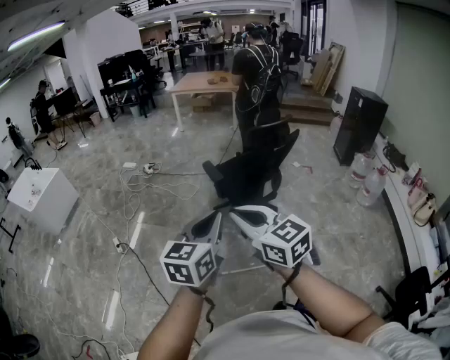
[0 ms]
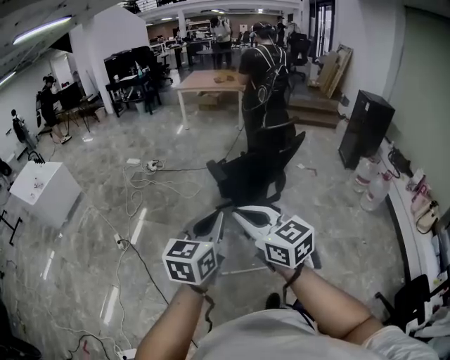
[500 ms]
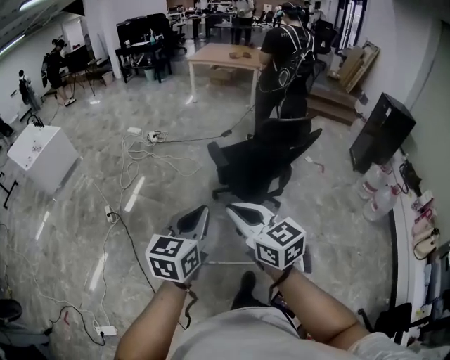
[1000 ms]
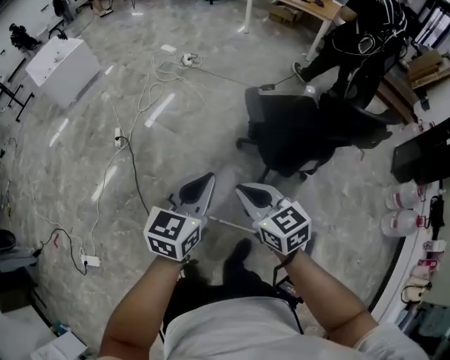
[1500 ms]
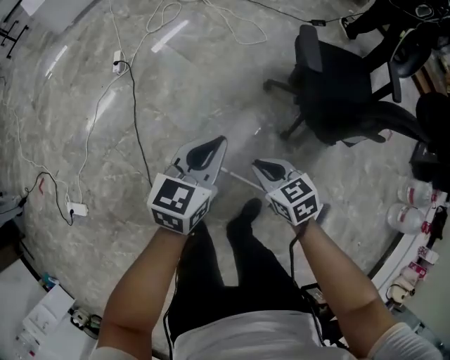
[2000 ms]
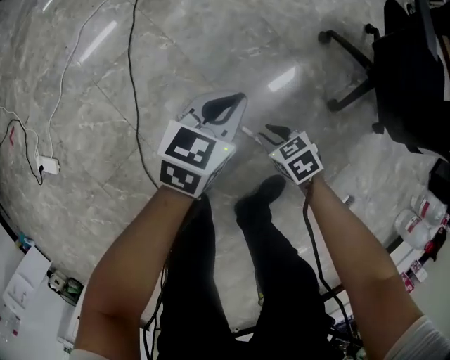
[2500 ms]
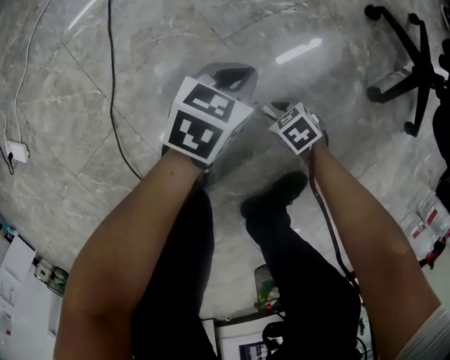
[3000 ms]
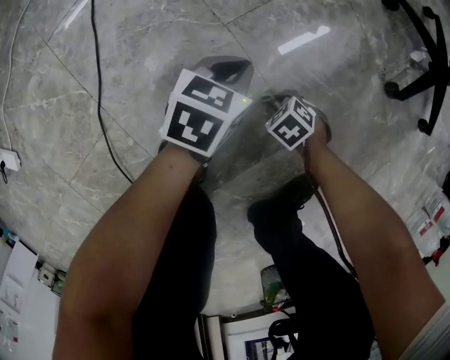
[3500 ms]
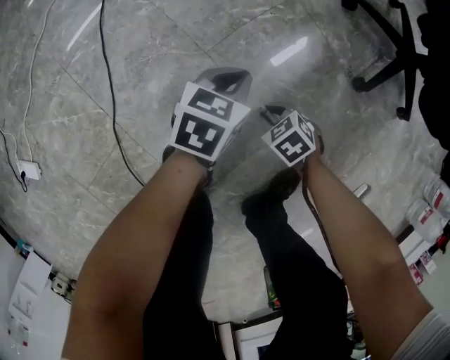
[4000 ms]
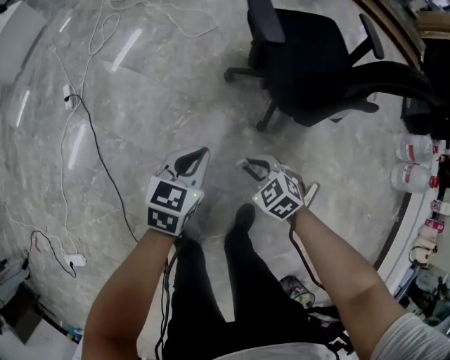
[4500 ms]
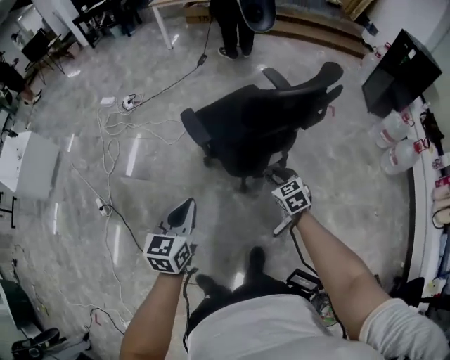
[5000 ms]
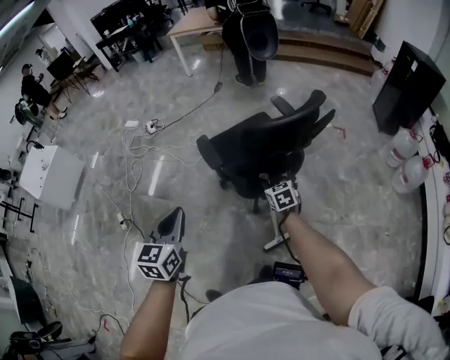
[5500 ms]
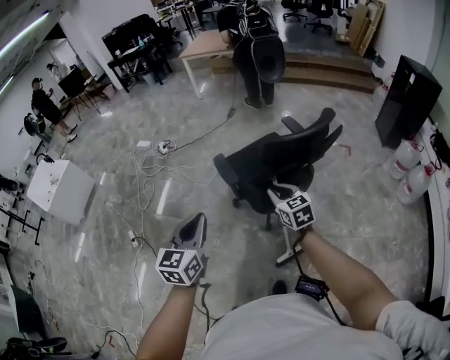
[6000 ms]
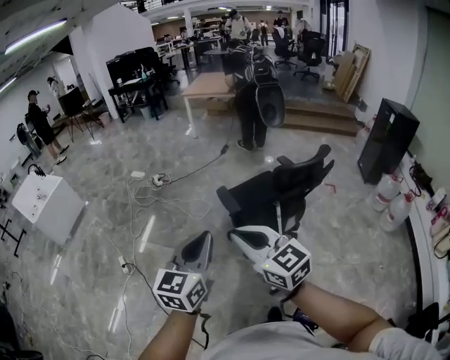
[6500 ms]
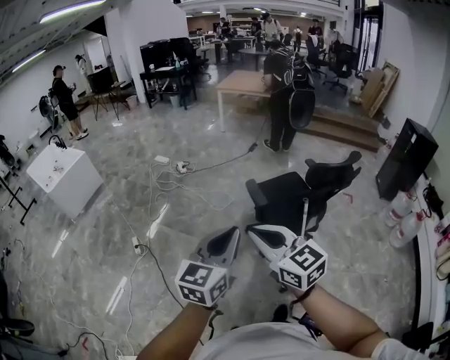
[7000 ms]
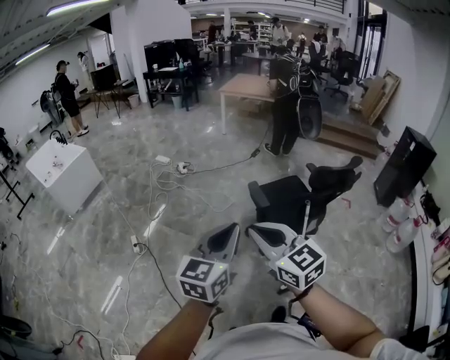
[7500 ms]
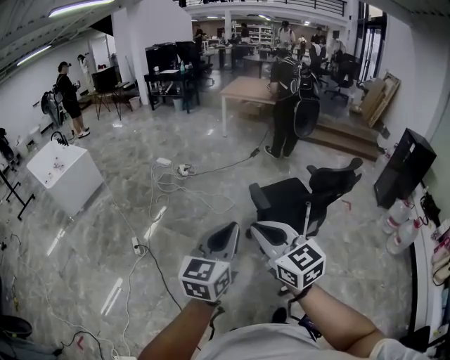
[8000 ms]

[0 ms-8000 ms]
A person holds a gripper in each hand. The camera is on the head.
0 ms to 2000 ms: Both grippers move downward, some 50 cm. The right gripper tilts its fingers approximately 40 degrees downward. Meanwhile the left gripper turns by about 30 degrees.
2000 ms to 4000 ms: Both grippers travel together downward, some 70 cm. The left gripper changes its angle by about 20 degrees, while the right gripper rotates about 40 degrees.
4000 ms to 6000 ms: The two grippers go about 1 m upward. The left gripper turns by roughly 40 degrees. Meanwhile the right gripper tilts its fingers roughly 50 degrees upward.
6000 ms to 8000 ms: The right gripper goes some 50 cm to the left, upward and backward, and rotates roughly 30 degrees. The left gripper travels to the left, upward and backward by some 30 cm.

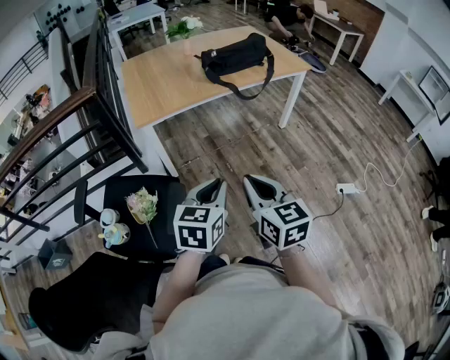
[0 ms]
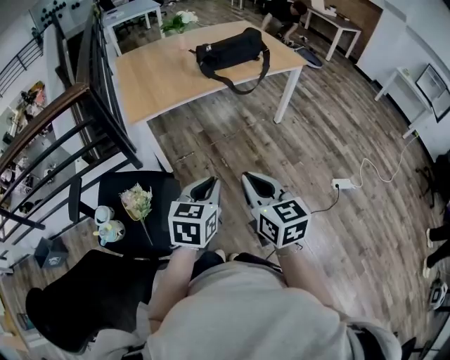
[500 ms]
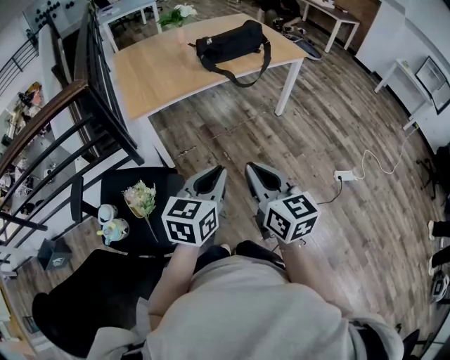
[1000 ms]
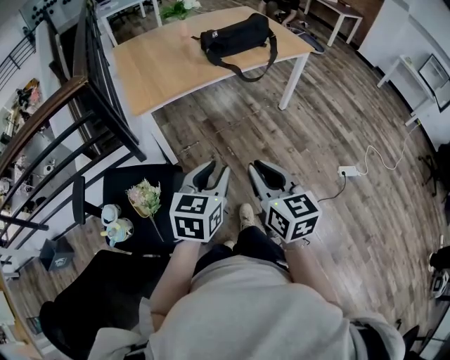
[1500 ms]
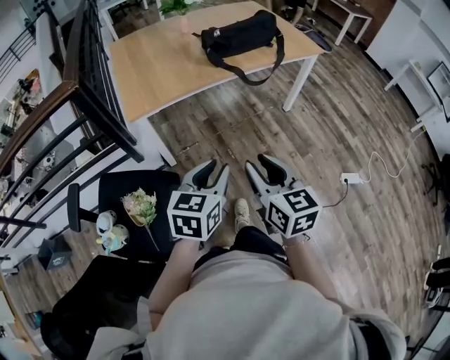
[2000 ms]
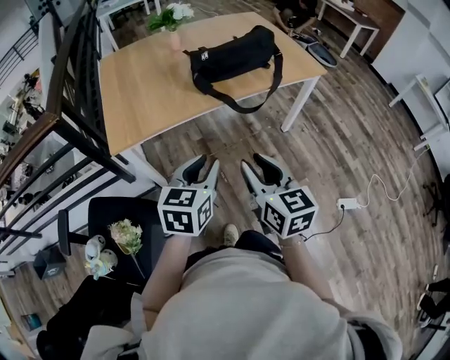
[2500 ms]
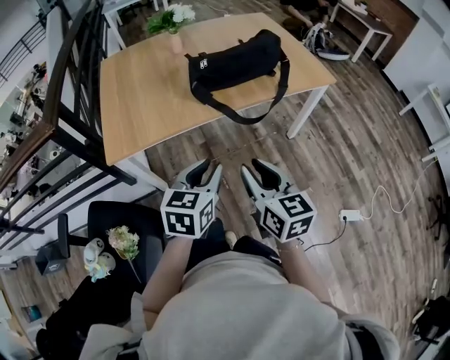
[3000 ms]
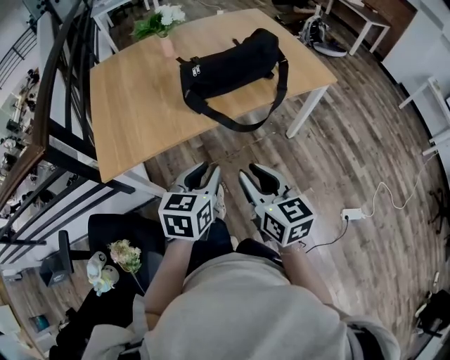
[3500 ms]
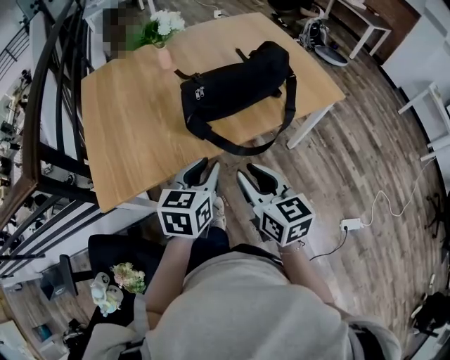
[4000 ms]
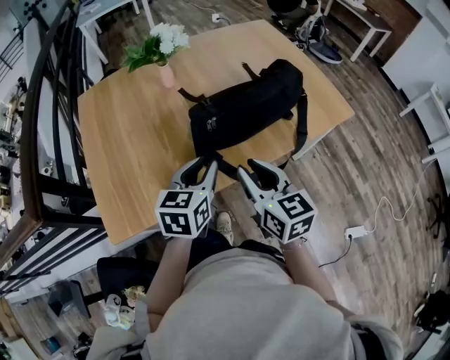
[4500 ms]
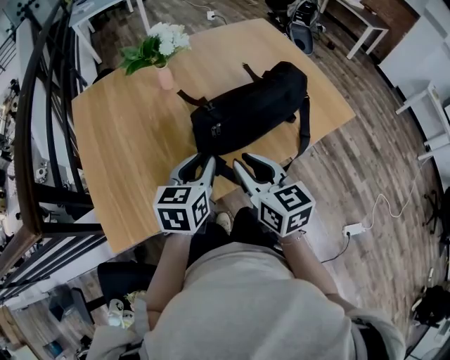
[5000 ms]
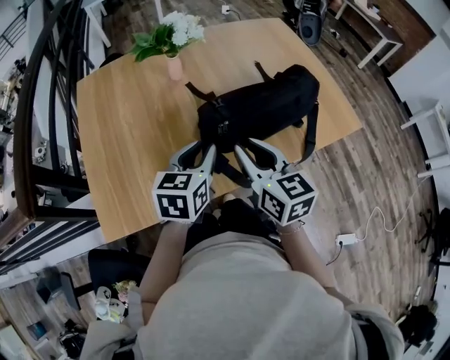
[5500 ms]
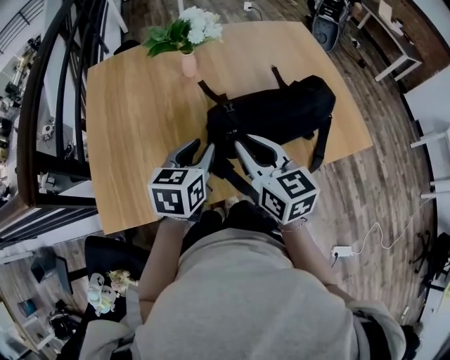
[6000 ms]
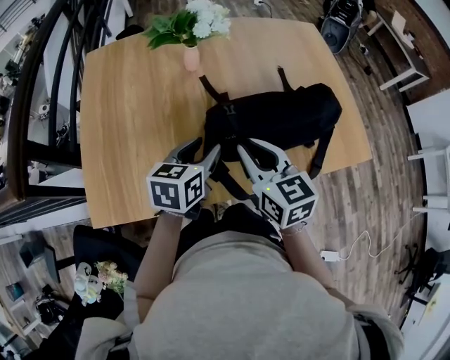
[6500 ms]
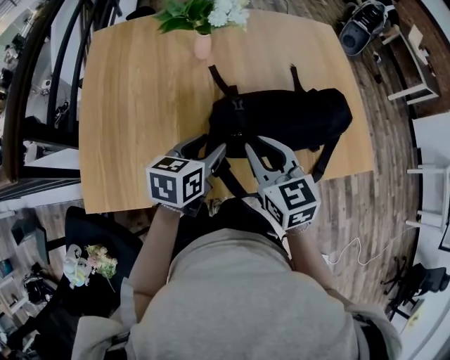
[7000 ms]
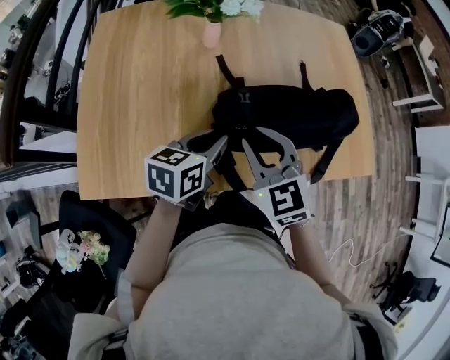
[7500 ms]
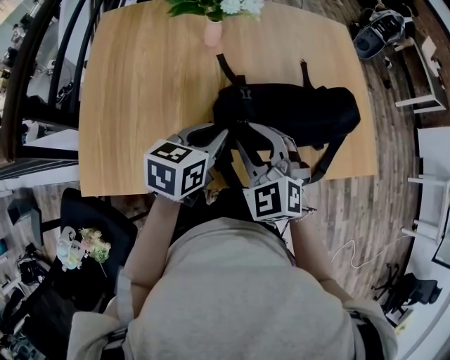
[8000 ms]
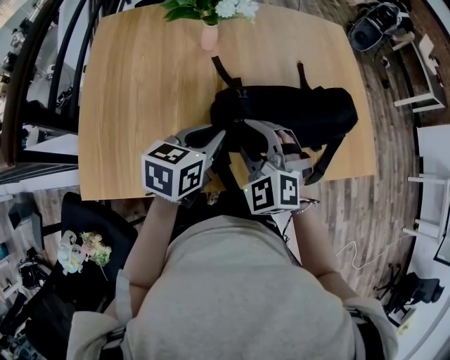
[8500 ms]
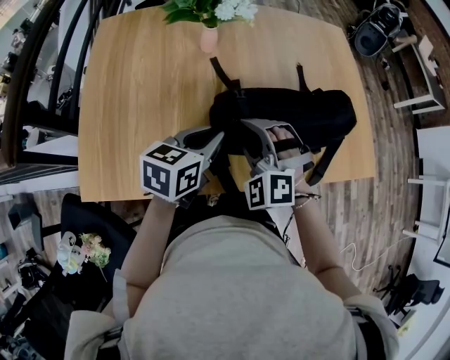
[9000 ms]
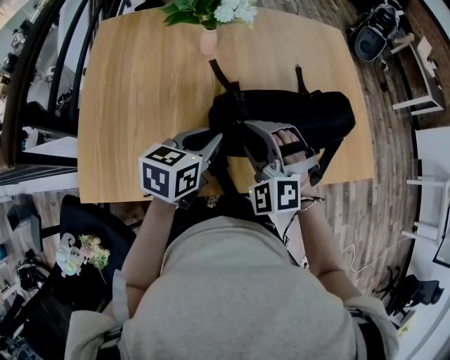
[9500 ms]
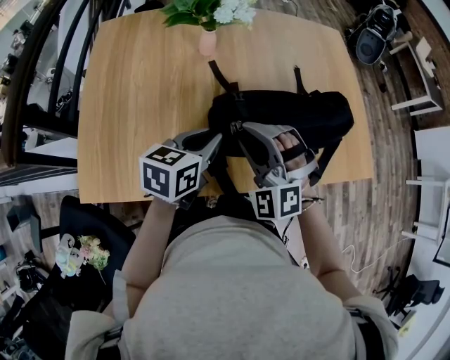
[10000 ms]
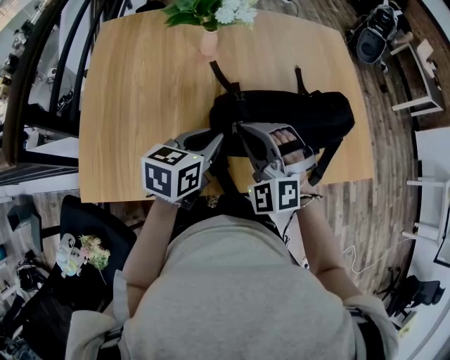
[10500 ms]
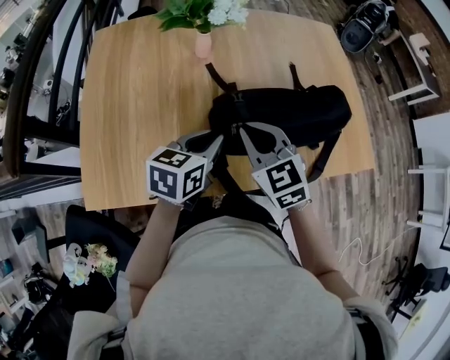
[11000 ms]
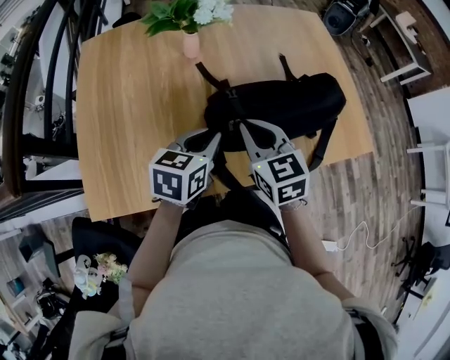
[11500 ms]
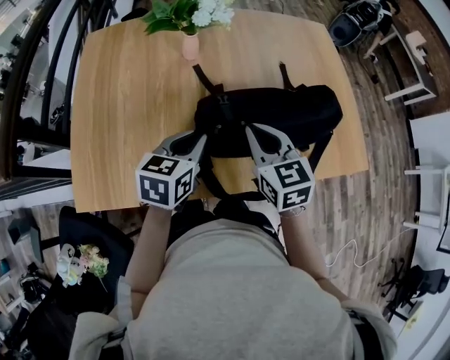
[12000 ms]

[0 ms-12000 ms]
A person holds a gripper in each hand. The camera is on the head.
0 ms to 2000 ms: Both grippers move forward, roughly 10 cm. The right gripper opens.
2000 ms to 4000 ms: Both grippers move forward, roughly 40 cm.
4000 ms to 6000 ms: The two grippers go about 20 cm forward.
6000 ms to 8000 ms: The right gripper shifts by approximately 5 cm, and twists about 50 degrees counterclockwise, seen from behind.
8000 ms to 10000 ms: The right gripper turns by approximately 30 degrees.
10000 ms to 12000 ms: The right gripper travels to the right by approximately 5 cm, rolls clockwise, seen from behind, by roughly 70 degrees, and closes.

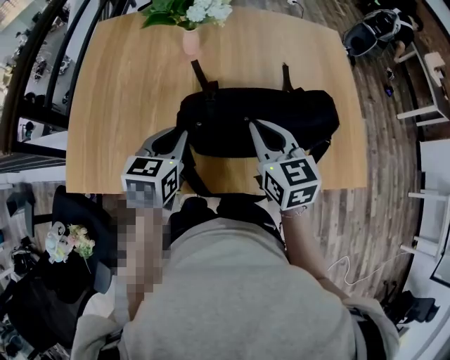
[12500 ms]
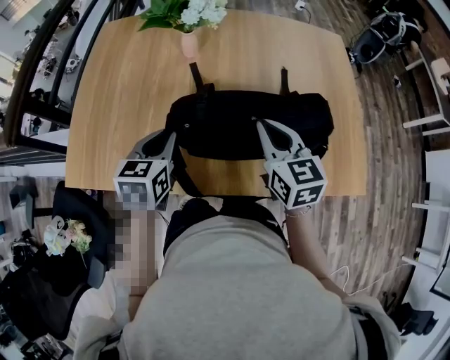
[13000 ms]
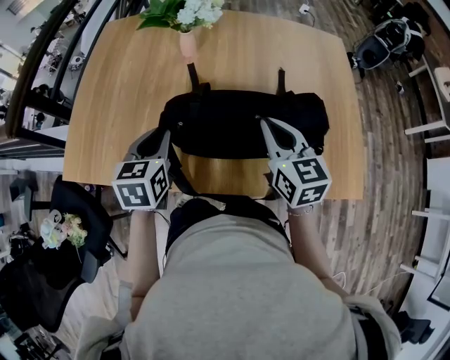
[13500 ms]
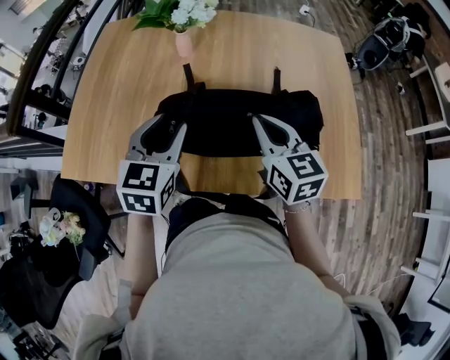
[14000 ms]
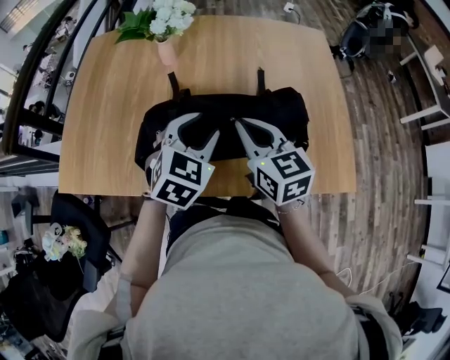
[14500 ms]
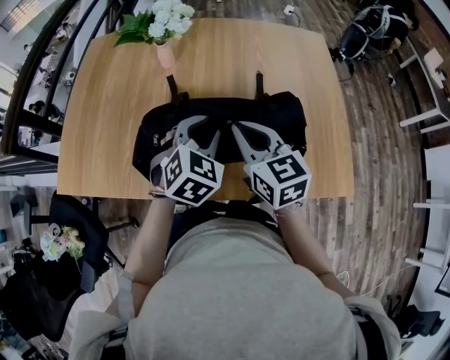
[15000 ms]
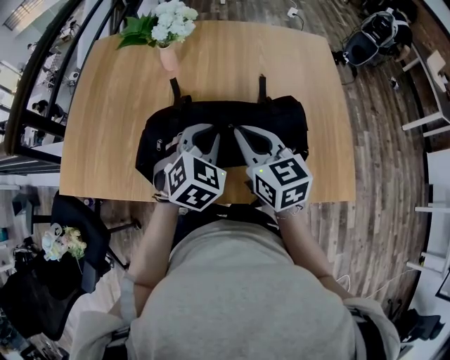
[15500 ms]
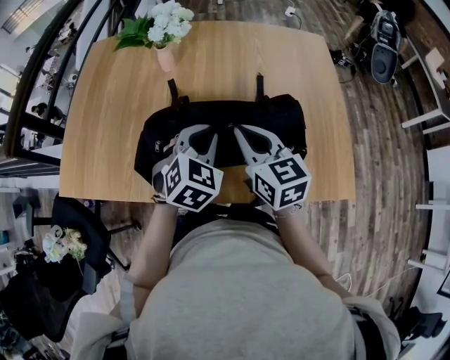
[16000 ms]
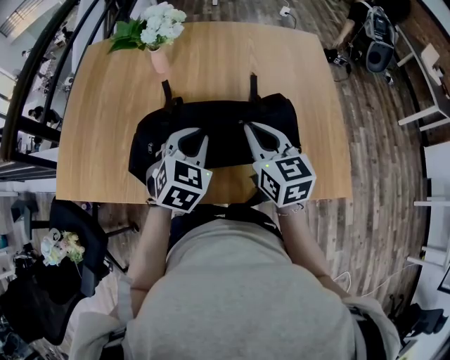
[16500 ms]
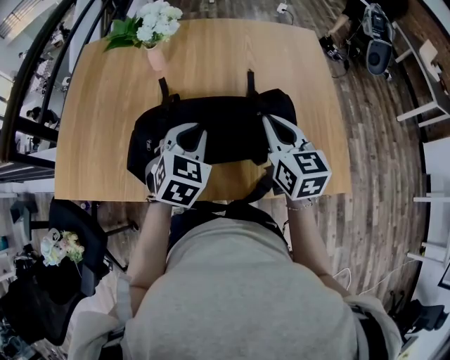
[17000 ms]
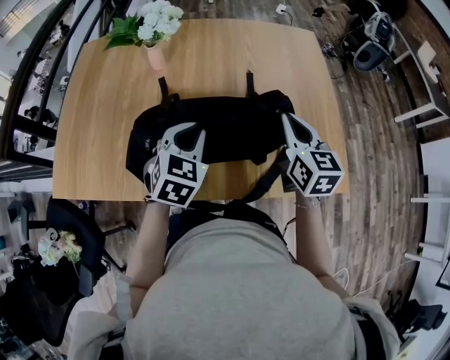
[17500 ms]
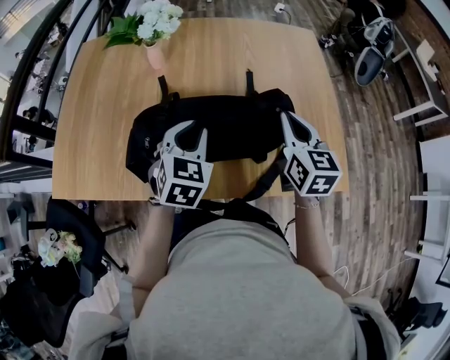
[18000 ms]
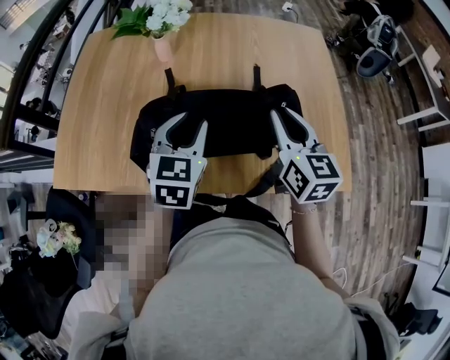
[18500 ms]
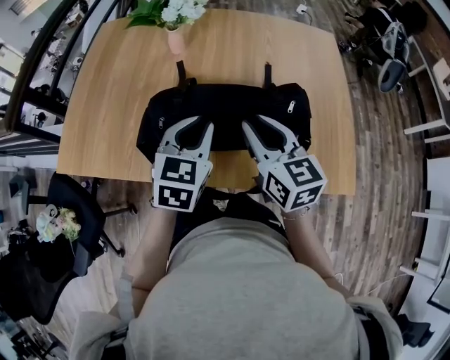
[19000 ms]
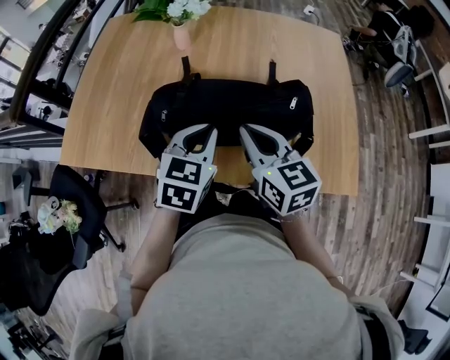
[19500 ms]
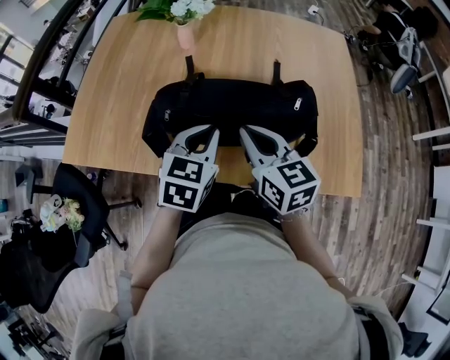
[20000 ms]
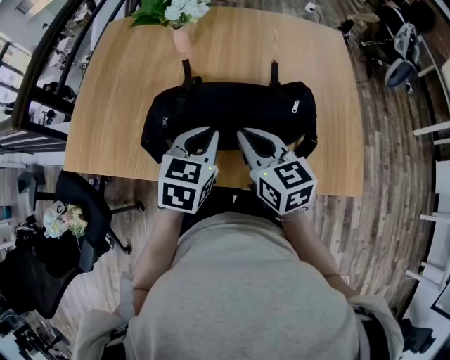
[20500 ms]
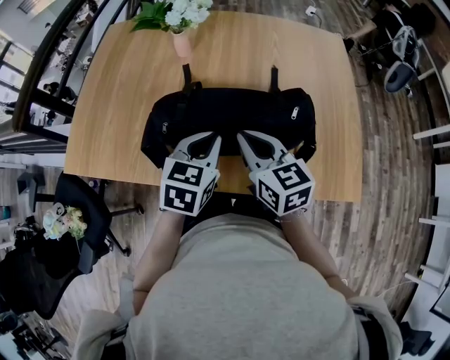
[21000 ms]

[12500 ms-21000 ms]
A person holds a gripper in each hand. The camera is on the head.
12500 ms to 14500 ms: The left gripper shifts approximately 15 cm to the right, changes its angle by approximately 30 degrees, and opens its fingers, while the right gripper travels to the right by approximately 5 cm.
14500 ms to 16500 ms: The left gripper closes up; the right gripper is displaced to the right by roughly 5 cm.
16500 ms to 19000 ms: The right gripper goes to the right and returns, about 10 cm each way, and opens. The left gripper shifts by some 5 cm, and changes its angle by some 20 degrees.
19000 ms to 21000 ms: The right gripper closes.
